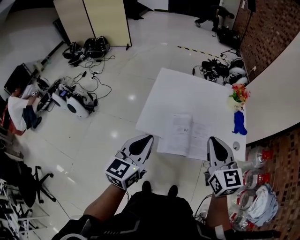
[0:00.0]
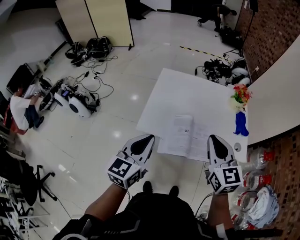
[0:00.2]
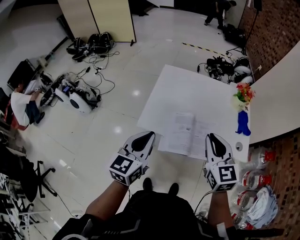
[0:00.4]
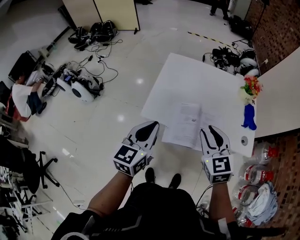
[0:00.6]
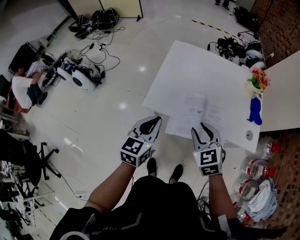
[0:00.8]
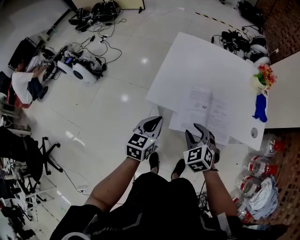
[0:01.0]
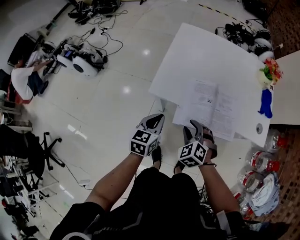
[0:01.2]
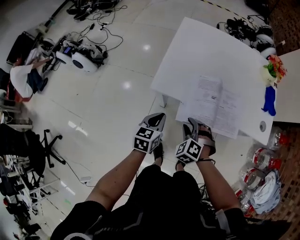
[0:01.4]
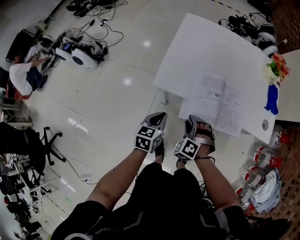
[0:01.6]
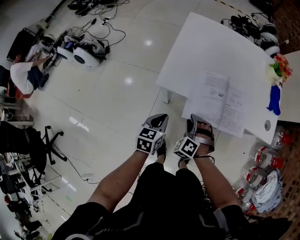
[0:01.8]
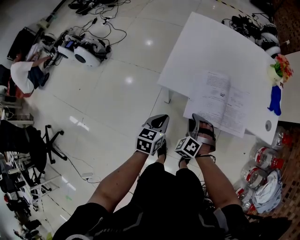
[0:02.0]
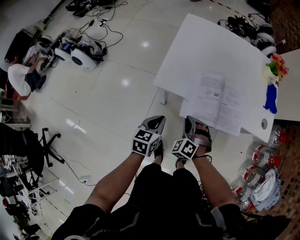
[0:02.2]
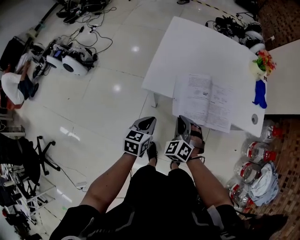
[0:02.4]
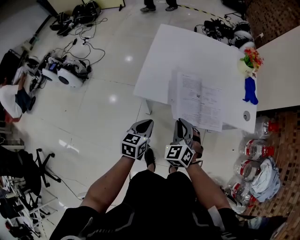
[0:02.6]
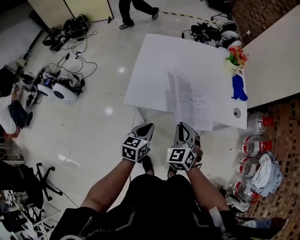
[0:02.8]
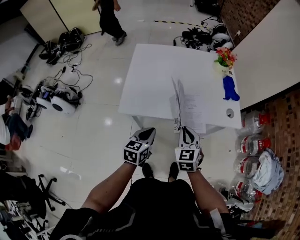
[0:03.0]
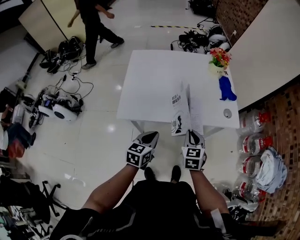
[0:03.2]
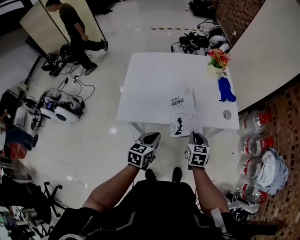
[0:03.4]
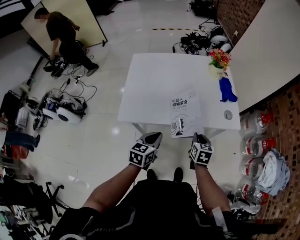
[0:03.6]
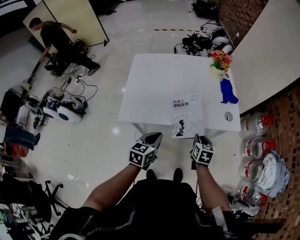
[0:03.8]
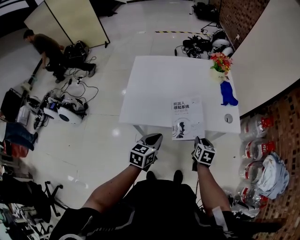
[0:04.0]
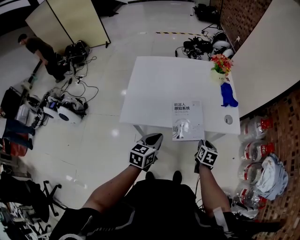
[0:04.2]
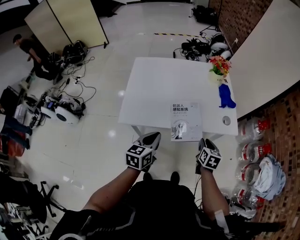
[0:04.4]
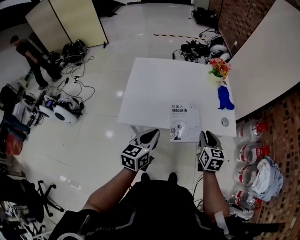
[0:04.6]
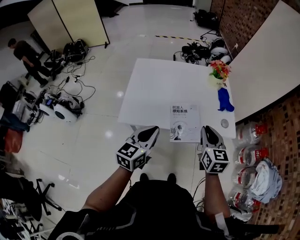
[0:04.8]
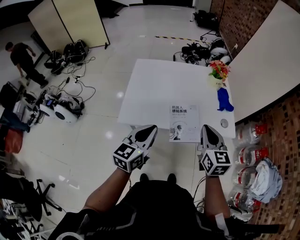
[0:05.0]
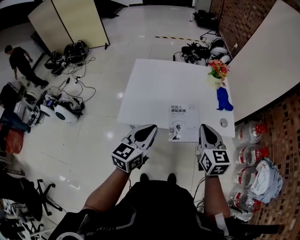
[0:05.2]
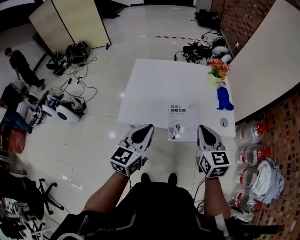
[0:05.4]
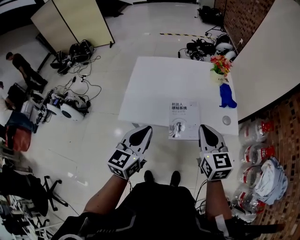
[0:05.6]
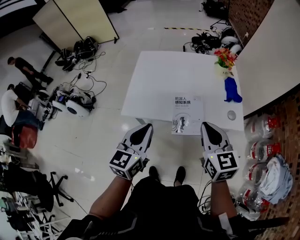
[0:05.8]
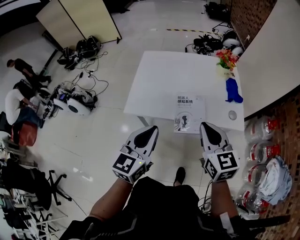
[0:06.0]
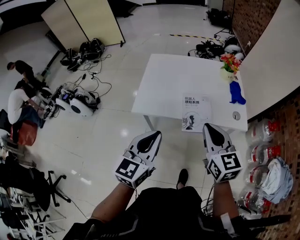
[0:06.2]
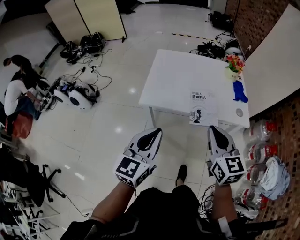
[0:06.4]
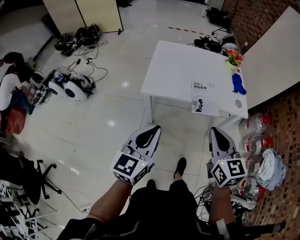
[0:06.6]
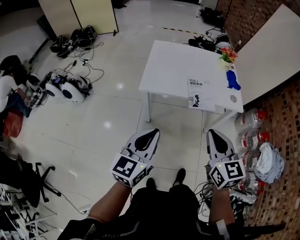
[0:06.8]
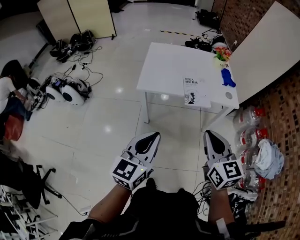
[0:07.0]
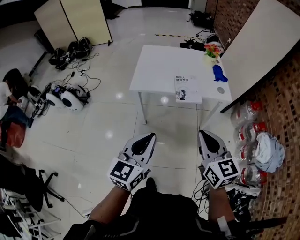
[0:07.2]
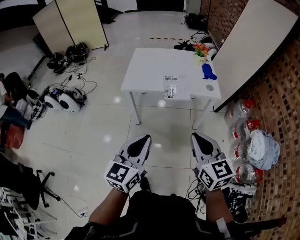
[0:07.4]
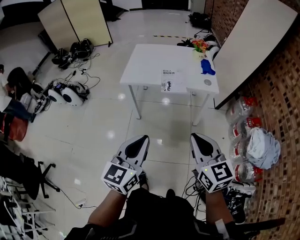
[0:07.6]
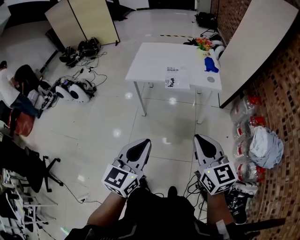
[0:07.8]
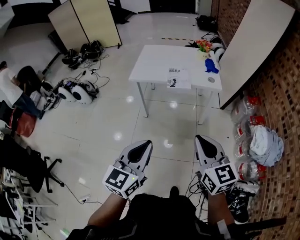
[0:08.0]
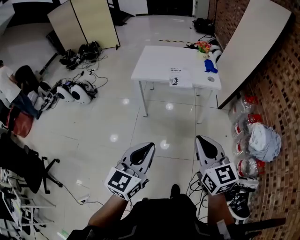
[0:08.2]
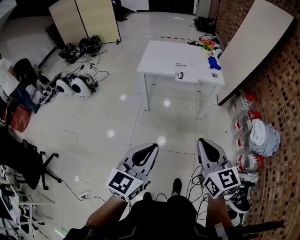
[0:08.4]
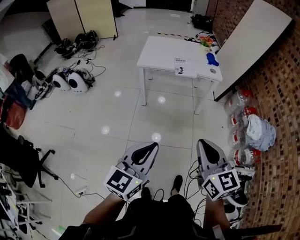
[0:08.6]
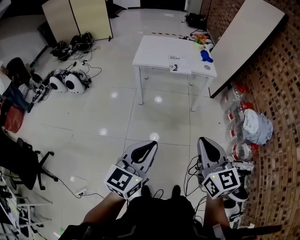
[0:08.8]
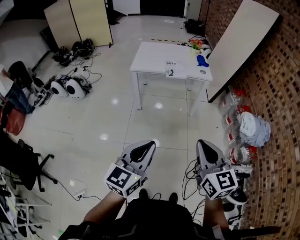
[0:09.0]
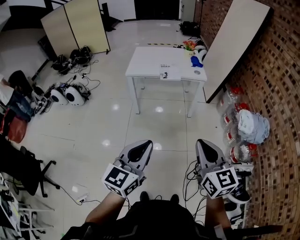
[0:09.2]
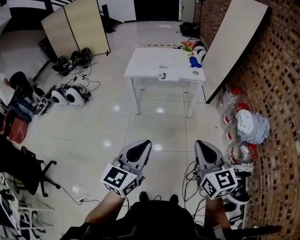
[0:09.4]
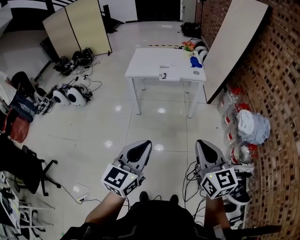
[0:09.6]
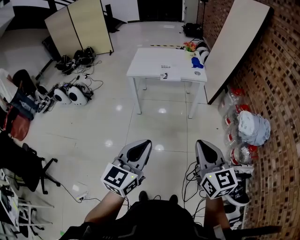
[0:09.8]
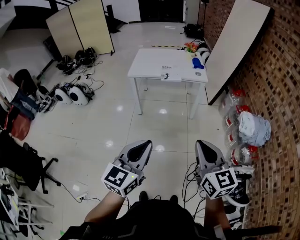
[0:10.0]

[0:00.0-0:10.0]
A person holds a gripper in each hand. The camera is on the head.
0.0 to 1.4 s: The right gripper goes roughly 35 cm downward and to the left, tilts its fingers approximately 40 degrees downward, and opens up, while the left gripper heads downward, covering some 30 cm, and turns by about 30 degrees.
1.4 to 2.8 s: The left gripper moves to the right, roughly 5 cm. The right gripper goes roughly 15 cm upward and to the right, changes its angle by approximately 40 degrees, and closes.
2.8 to 4.2 s: The left gripper heads to the right, covering approximately 10 cm. Meanwhile the right gripper goes approximately 25 cm to the right and downward, and twists about 60 degrees clockwise, seen from behind.
4.2 to 5.8 s: The right gripper heads upward, covering about 25 cm, points its fingers roughly 30 degrees further upward, and closes. The left gripper moves upward, approximately 15 cm, and swivels roughly 20 degrees.
5.8 to 7.2 s: Both grippers move backward, roughly 30 cm.
7.2 to 8.6 s: Both grippers move backward, about 35 cm.
8.6 to 10.0 s: The grippers both shift to the right and backward by roughly 15 cm.

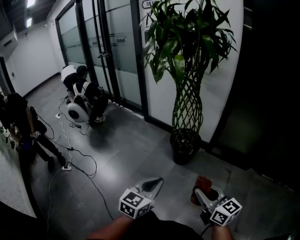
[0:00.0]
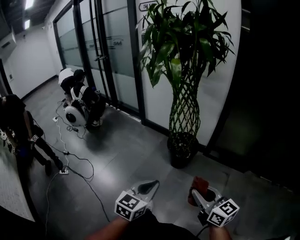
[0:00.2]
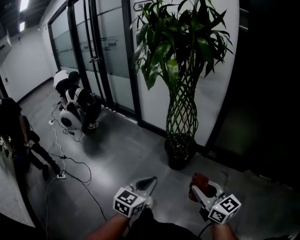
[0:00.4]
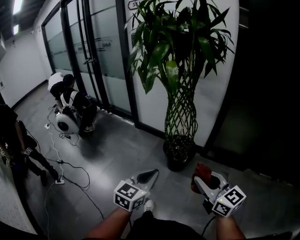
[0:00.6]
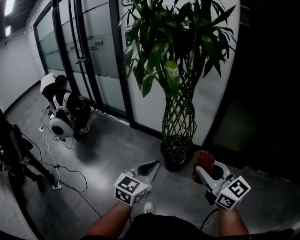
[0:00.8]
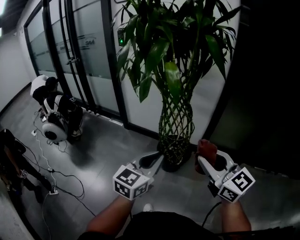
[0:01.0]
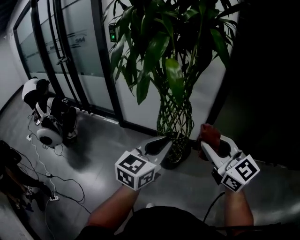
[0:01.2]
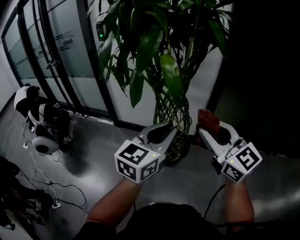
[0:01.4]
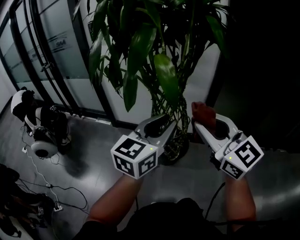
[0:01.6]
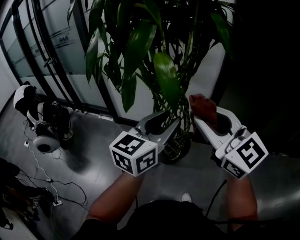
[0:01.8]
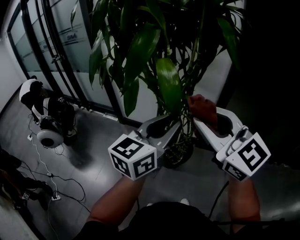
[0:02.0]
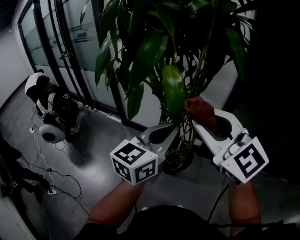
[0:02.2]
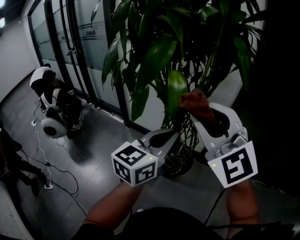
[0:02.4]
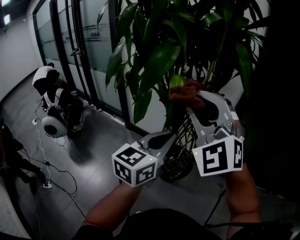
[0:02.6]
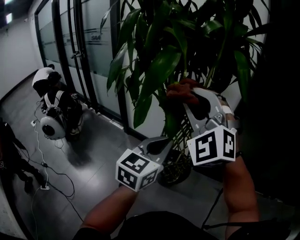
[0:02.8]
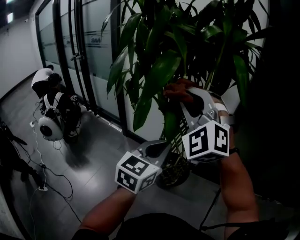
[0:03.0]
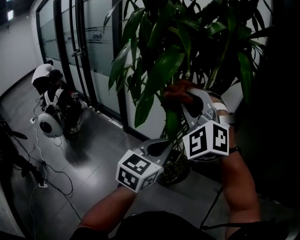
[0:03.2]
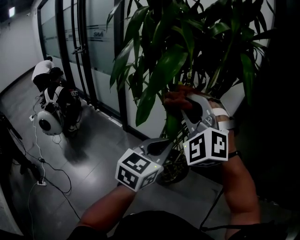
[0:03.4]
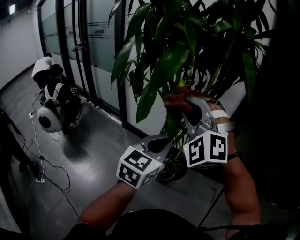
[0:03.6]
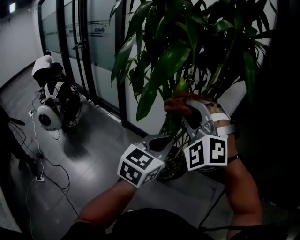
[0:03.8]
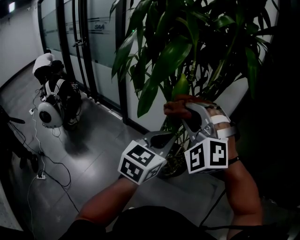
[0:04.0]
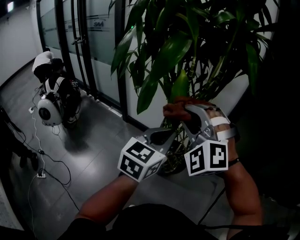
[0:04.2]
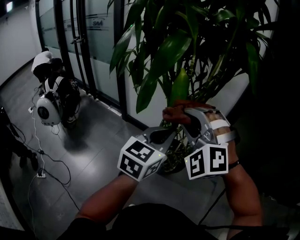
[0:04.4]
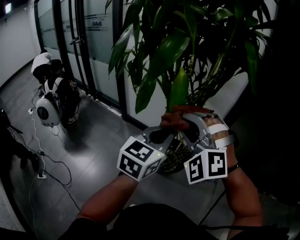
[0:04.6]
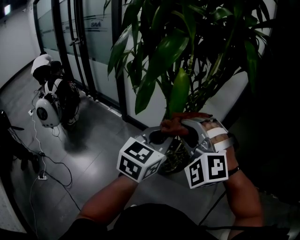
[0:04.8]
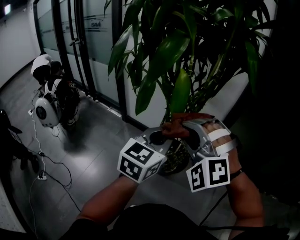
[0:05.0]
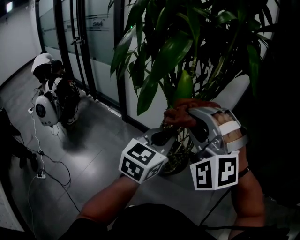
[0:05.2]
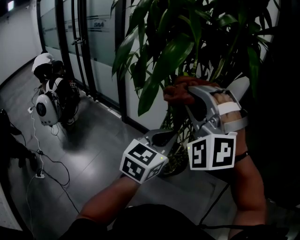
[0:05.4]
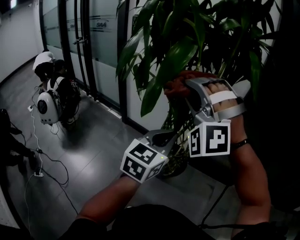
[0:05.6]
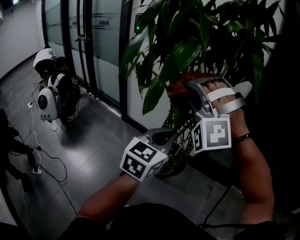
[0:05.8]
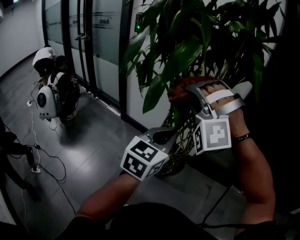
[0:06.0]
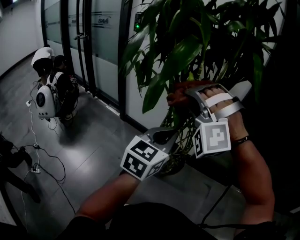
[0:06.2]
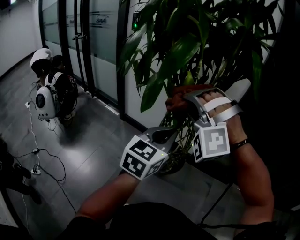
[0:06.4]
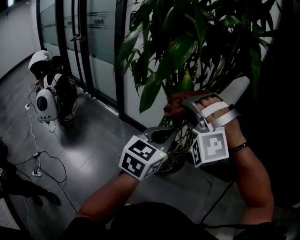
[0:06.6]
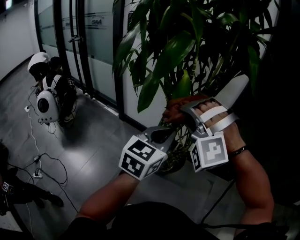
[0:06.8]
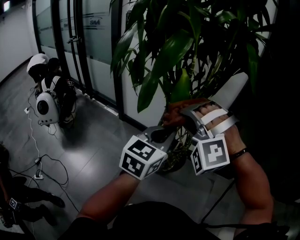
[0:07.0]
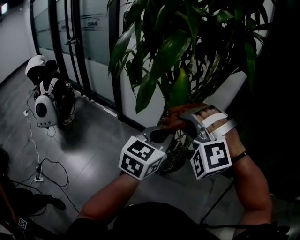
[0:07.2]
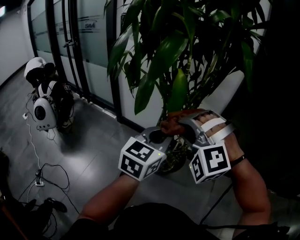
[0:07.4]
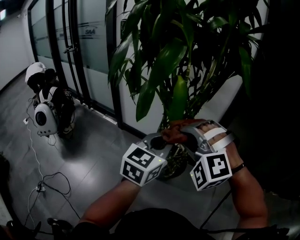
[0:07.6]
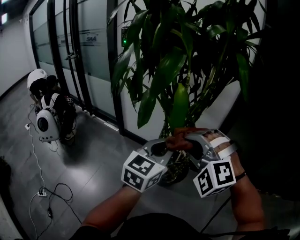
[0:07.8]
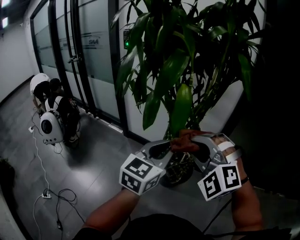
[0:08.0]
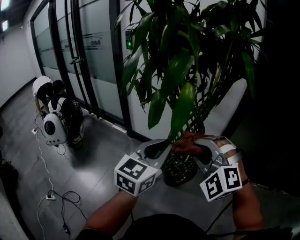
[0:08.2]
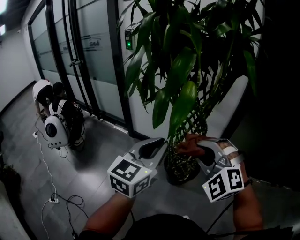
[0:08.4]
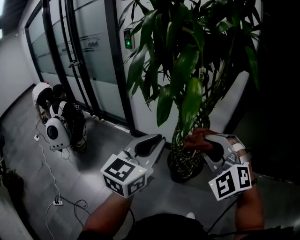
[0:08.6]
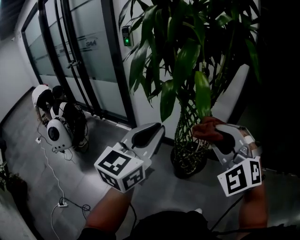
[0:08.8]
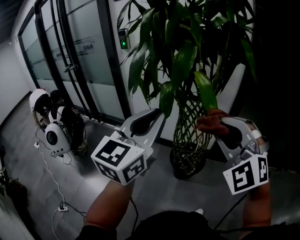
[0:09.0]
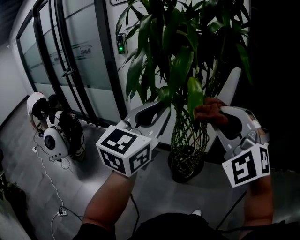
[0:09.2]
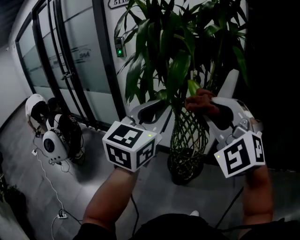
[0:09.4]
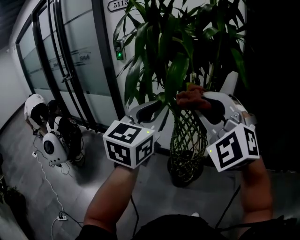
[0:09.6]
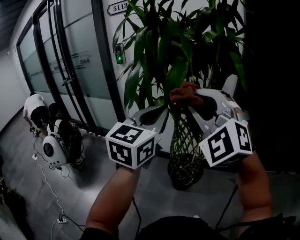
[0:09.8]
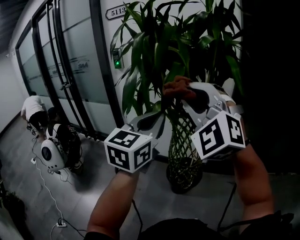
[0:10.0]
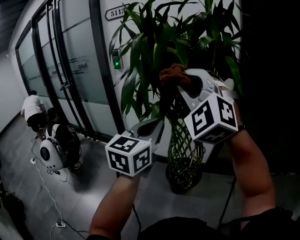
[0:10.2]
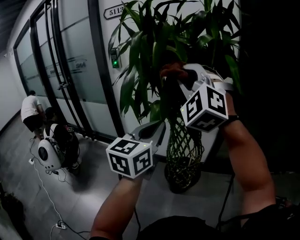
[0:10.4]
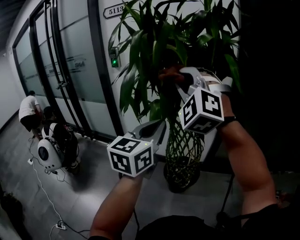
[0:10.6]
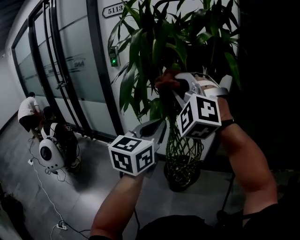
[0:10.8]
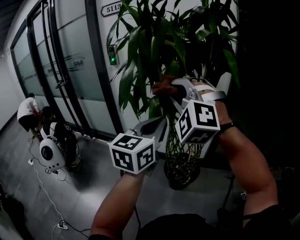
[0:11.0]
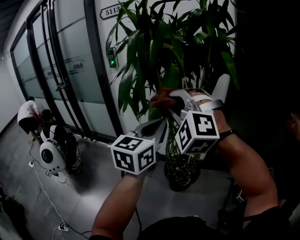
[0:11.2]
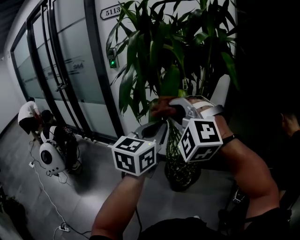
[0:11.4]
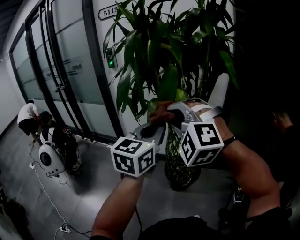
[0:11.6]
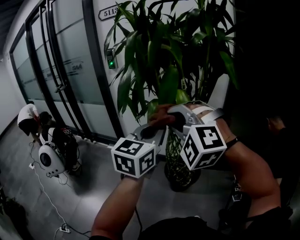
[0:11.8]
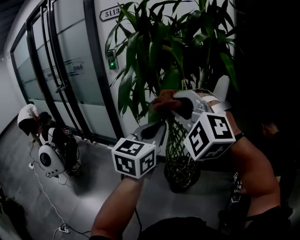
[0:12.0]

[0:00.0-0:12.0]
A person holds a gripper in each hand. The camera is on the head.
0.0 to 1.6 s: Both grippers move forward and upward, some 40 cm. The left gripper turns by some 30 degrees, and opens up. The right gripper turns by roughly 30 degrees.
1.6 to 3.0 s: The right gripper is displaced forward, upward and to the left by about 20 cm, and rolls counterclockwise, seen from behind, by approximately 60 degrees; the left gripper closes up.
3.0 to 4.4 s: The right gripper heads downward, covering approximately 10 cm.
4.4 to 6.0 s: The right gripper is displaced upward by some 5 cm, and swivels some 30 degrees.
6.0 to 7.6 s: The right gripper shifts some 10 cm downward and backward, and rotates approximately 20 degrees.
7.6 to 9.0 s: The right gripper heads upward and backward, covering some 10 cm, and swivels about 30 degrees. The left gripper moves to the left and upward, about 20 cm.
9.0 to 10.4 s: The right gripper heads upward, forward and to the left, covering about 20 cm, while the left gripper goes roughly 5 cm forward.
10.4 to 12.0 s: The right gripper is displaced downward and backward by about 10 cm.

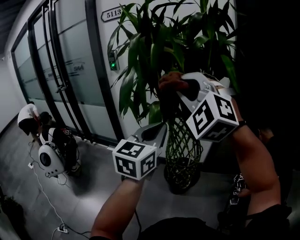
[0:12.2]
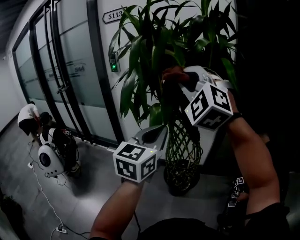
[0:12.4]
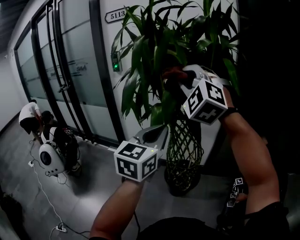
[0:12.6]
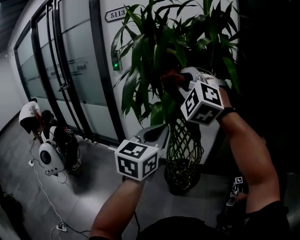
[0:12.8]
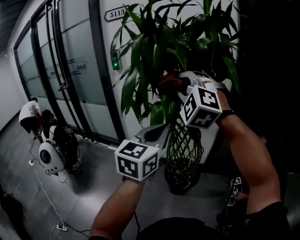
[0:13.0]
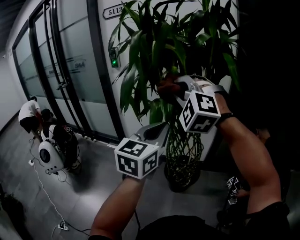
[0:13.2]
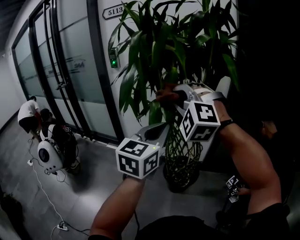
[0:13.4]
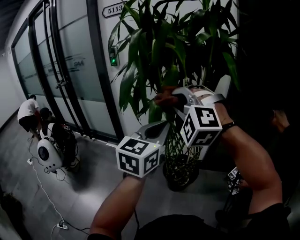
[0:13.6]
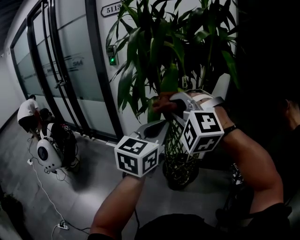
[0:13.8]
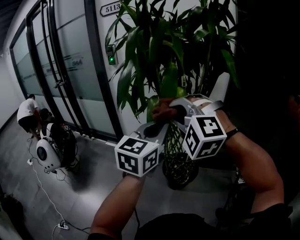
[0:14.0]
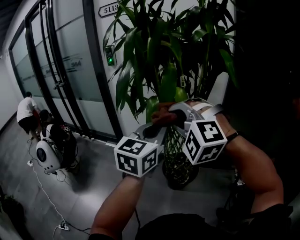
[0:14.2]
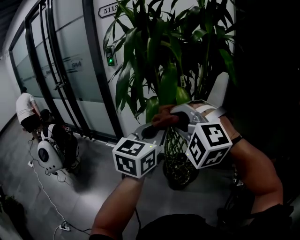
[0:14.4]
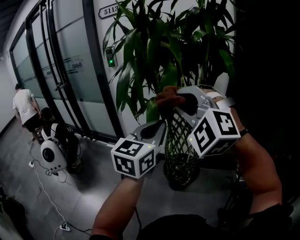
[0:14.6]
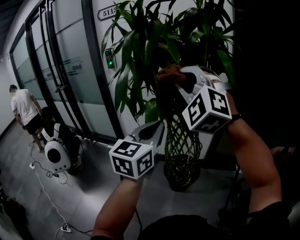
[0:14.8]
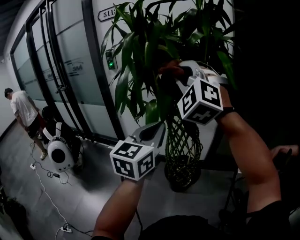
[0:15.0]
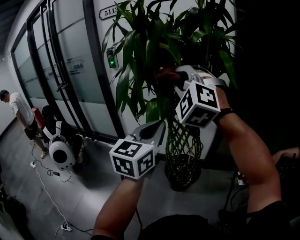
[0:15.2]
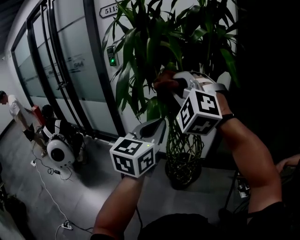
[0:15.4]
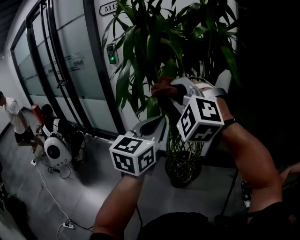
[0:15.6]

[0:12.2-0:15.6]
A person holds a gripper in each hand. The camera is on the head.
12.2 to 13.8 s: The right gripper travels downward by roughly 10 cm.
13.8 to 15.6 s: The right gripper travels upward and back again, about 10 cm each way.
